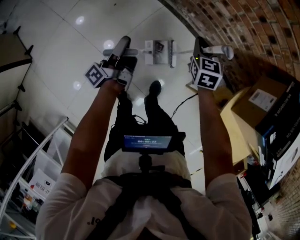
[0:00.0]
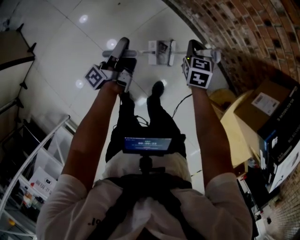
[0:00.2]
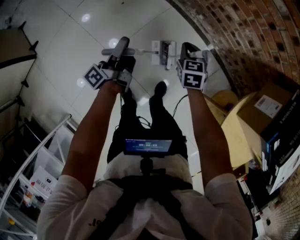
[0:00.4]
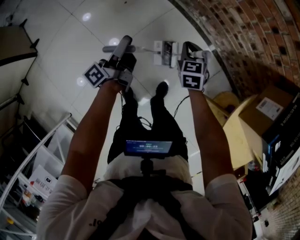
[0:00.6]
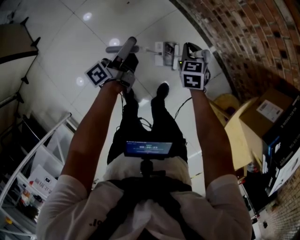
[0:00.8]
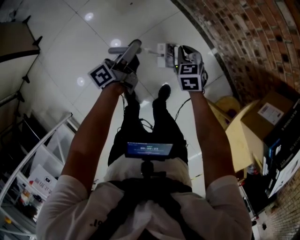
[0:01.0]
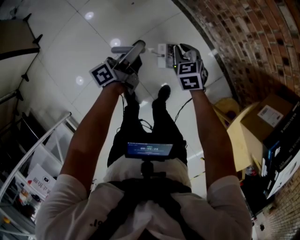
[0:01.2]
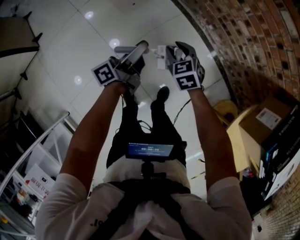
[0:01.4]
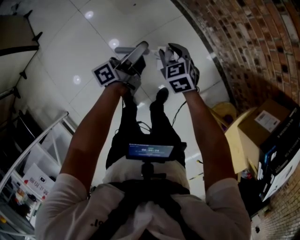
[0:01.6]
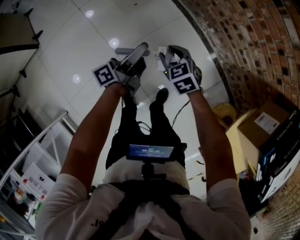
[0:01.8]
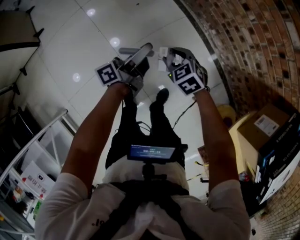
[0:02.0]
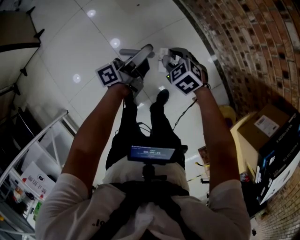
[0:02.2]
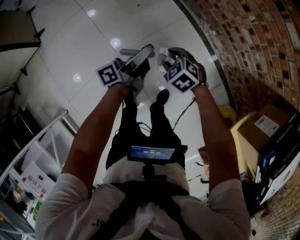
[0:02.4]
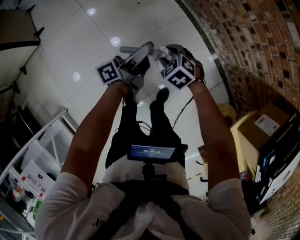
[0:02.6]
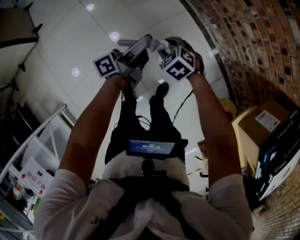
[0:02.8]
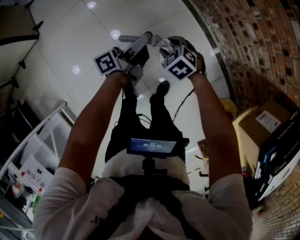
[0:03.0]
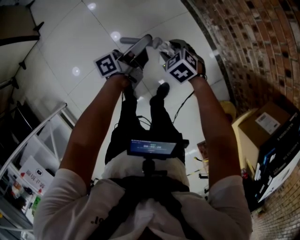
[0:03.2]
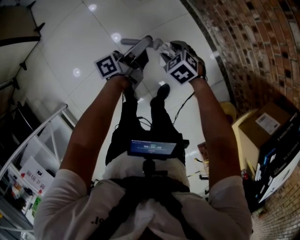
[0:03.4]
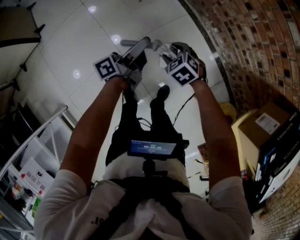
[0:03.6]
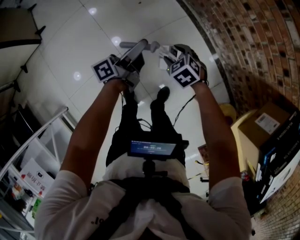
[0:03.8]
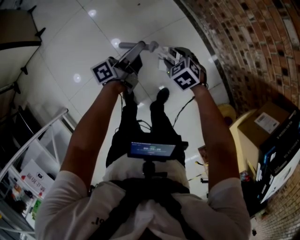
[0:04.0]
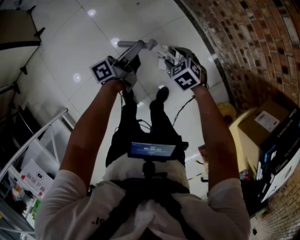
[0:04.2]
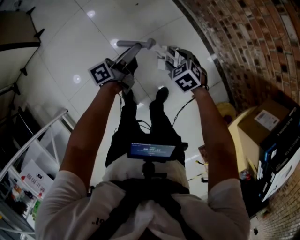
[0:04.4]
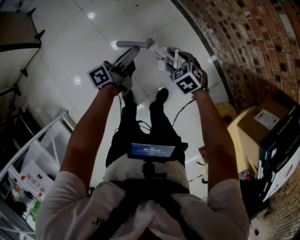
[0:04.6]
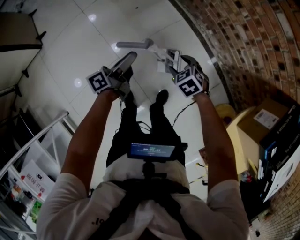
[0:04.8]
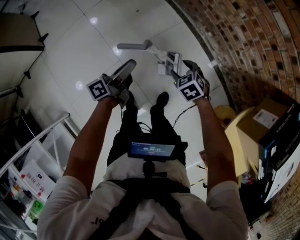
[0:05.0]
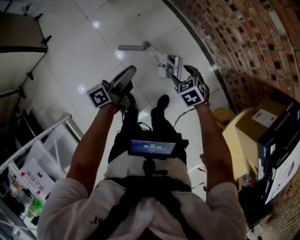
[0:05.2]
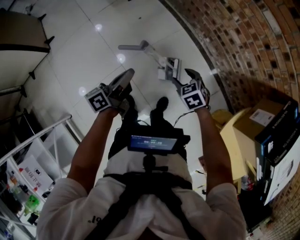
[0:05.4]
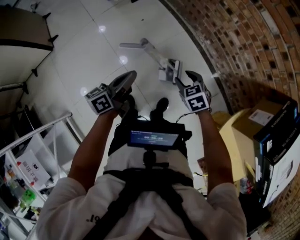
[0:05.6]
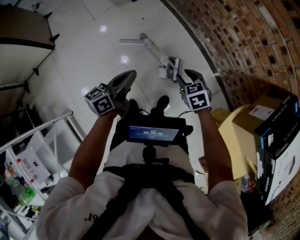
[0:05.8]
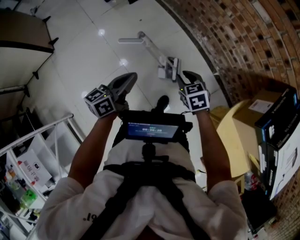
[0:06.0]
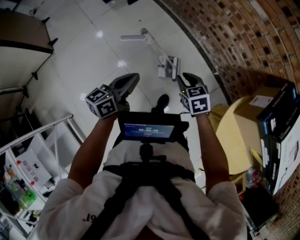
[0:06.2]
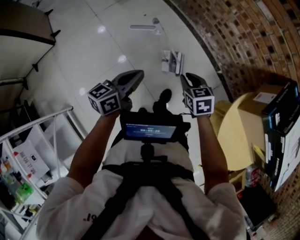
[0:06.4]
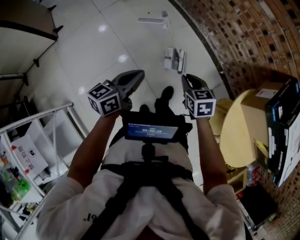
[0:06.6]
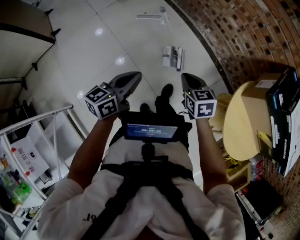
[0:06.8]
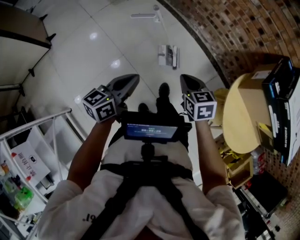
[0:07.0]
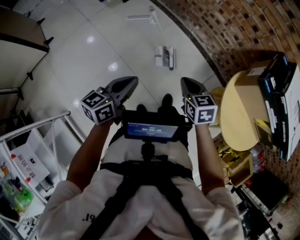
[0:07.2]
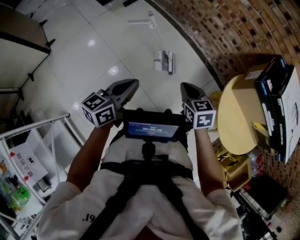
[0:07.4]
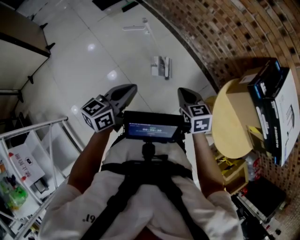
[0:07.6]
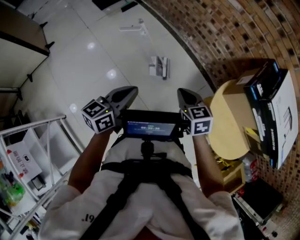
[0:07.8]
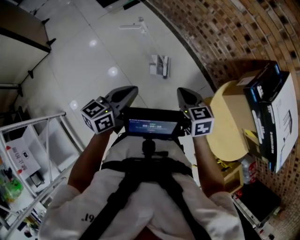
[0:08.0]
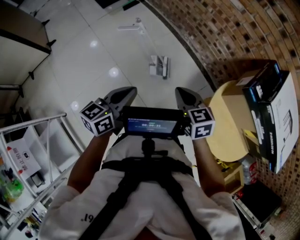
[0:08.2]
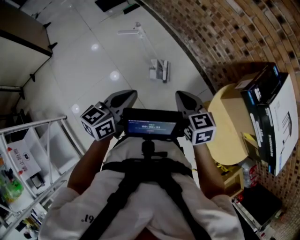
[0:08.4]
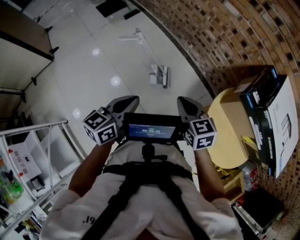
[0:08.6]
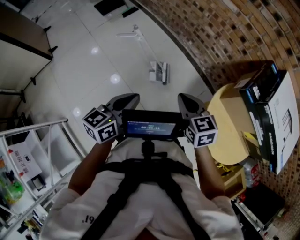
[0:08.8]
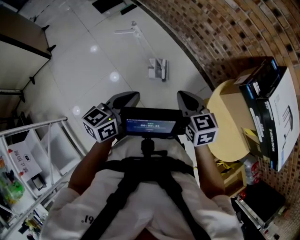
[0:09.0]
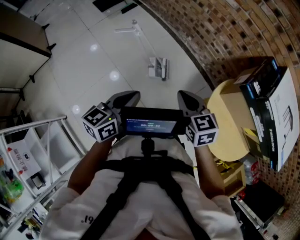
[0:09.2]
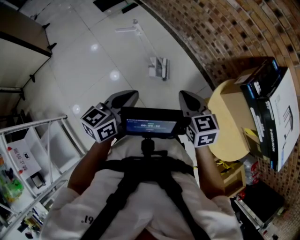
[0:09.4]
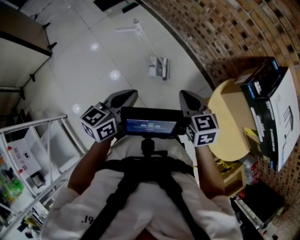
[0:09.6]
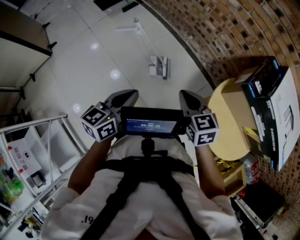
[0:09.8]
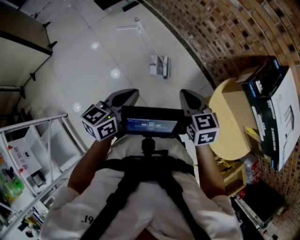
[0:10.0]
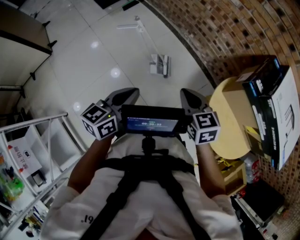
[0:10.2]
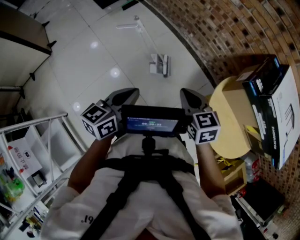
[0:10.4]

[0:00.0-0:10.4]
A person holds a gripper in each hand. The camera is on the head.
0:00.0 to 0:01.4: The left gripper opens up, while the right gripper moves to the left, approximately 20 cm, changes its angle by roughly 30 degrees, and opens its fingers.
0:01.4 to 0:03.0: The right gripper travels to the left by approximately 5 cm, and changes its angle by about 30 degrees.
0:03.0 to 0:04.4: The right gripper moves some 5 cm.
0:04.4 to 0:06.0: The right gripper goes roughly 15 cm backward, upward and to the right, swivels approximately 20 degrees, and closes, while the left gripper is displaced backward and upward by some 20 cm, changes its angle by some 40 degrees, and closes.
0:06.0 to 0:07.4: The left gripper shifts some 20 cm backward. Meanwhile the right gripper is displaced backward and upward by approximately 20 cm.
0:07.4 to 0:09.0: The left gripper travels to the right by some 10 cm. Meanwhile the right gripper is displaced upward and to the right by approximately 10 cm.
0:09.0 to 0:10.4: The grippers move only a little.

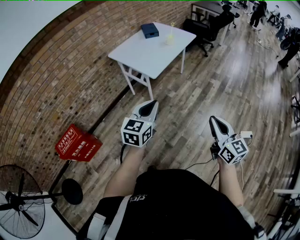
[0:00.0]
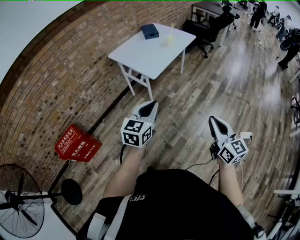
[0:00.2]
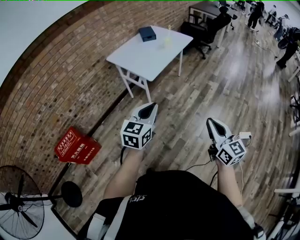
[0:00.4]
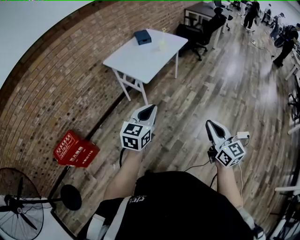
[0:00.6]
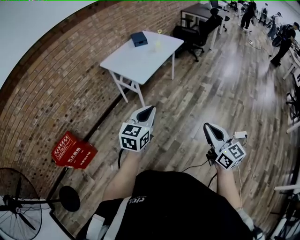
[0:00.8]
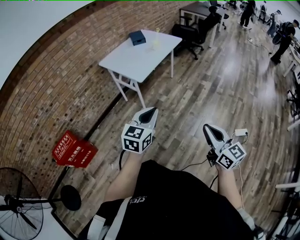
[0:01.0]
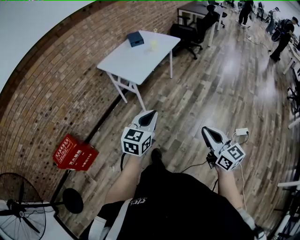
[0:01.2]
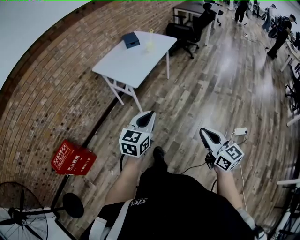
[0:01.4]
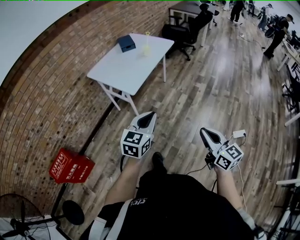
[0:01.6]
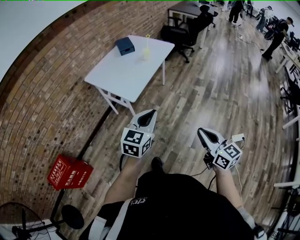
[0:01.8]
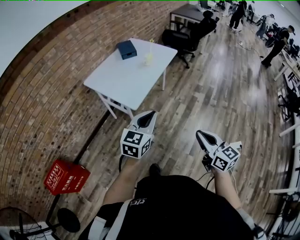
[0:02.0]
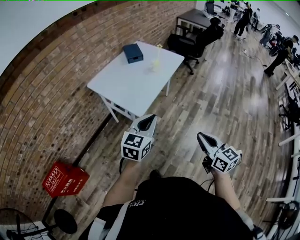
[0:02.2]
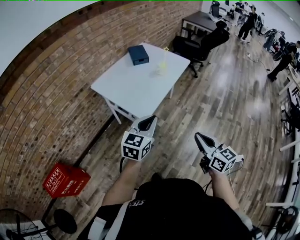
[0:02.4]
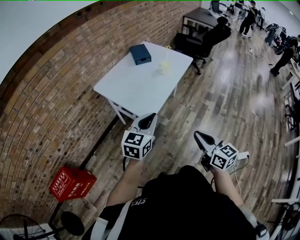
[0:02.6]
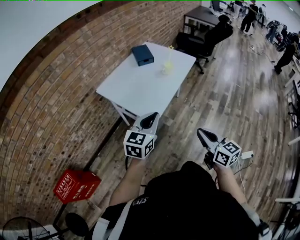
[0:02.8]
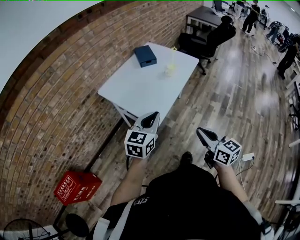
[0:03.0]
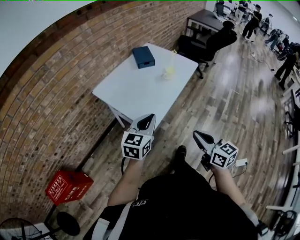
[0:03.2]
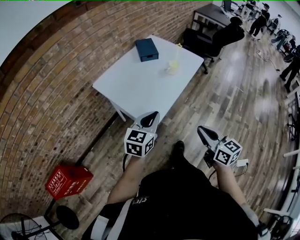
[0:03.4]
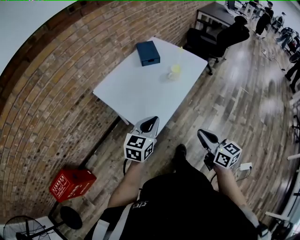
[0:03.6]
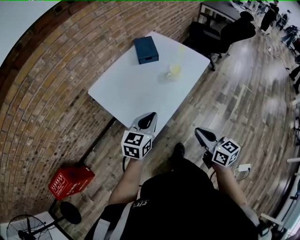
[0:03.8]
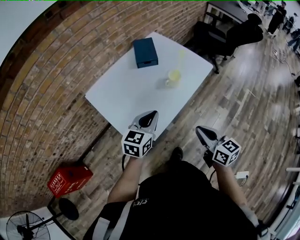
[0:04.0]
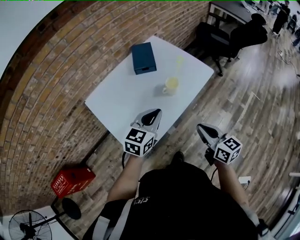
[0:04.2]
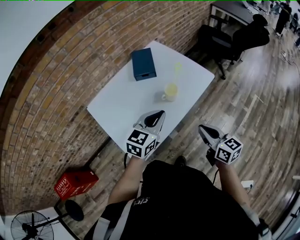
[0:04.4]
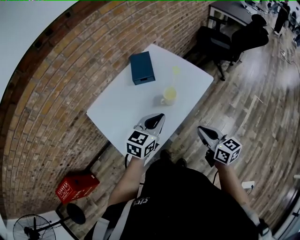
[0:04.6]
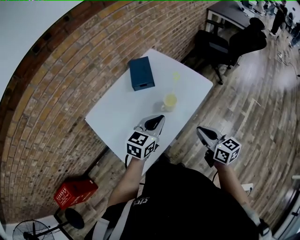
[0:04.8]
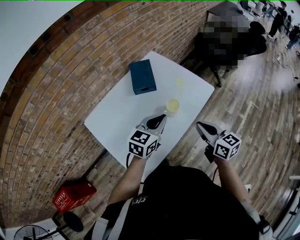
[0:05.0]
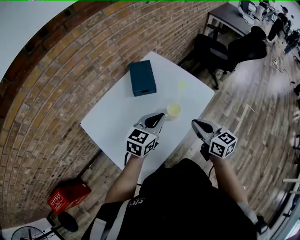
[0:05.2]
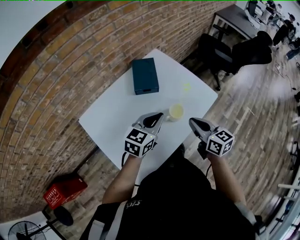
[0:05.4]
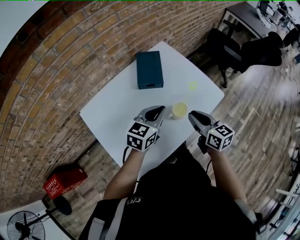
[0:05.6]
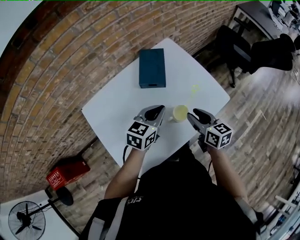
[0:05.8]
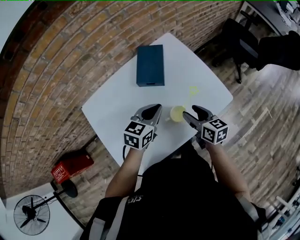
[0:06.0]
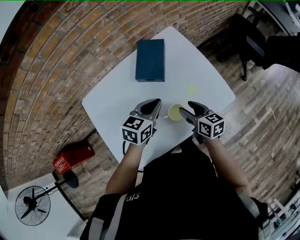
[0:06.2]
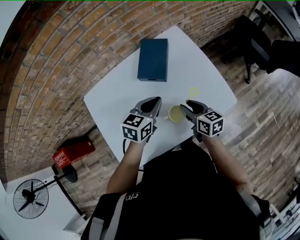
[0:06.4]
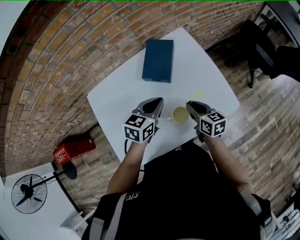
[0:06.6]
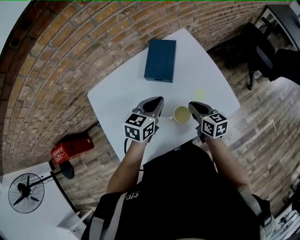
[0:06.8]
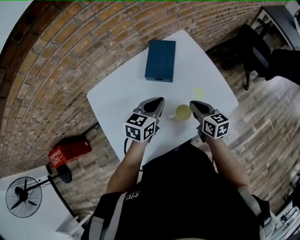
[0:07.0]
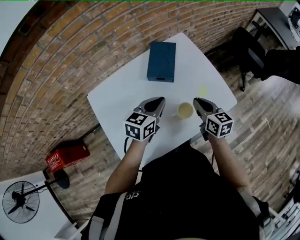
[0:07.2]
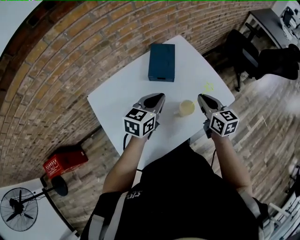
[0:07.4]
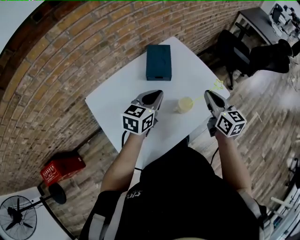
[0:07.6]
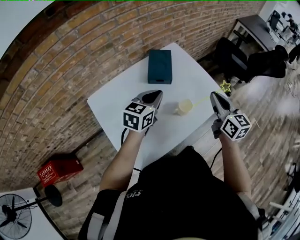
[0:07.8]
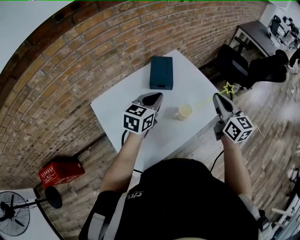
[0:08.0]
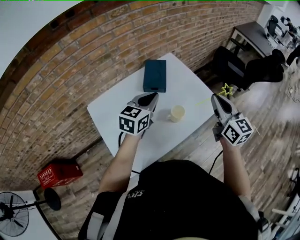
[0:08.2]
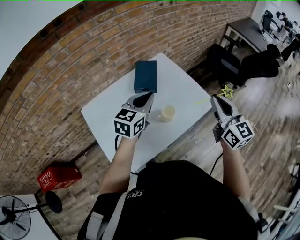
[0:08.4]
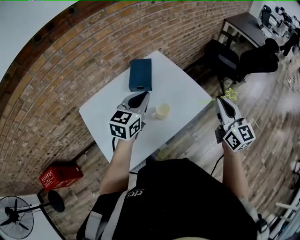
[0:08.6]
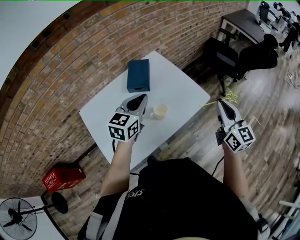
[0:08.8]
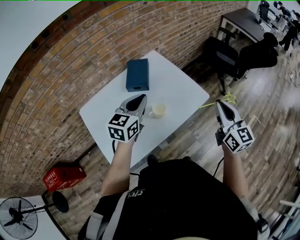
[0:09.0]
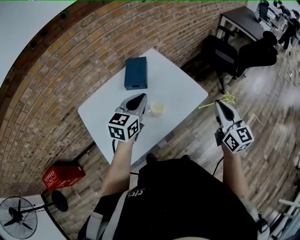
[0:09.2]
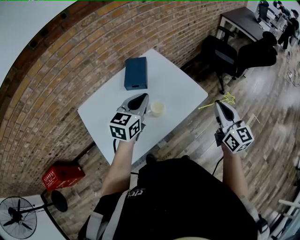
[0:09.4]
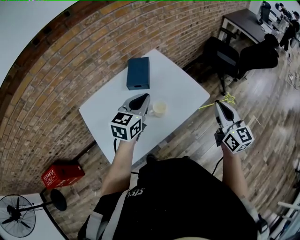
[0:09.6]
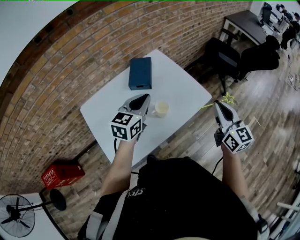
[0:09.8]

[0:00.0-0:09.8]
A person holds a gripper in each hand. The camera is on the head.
0:00.0 to 0:01.4: The left gripper shifts roughly 10 cm to the right. The right gripper goes about 5 cm to the right.
0:01.4 to 0:02.8: Both grippers move forward and to the left, roughly 35 cm.
0:02.8 to 0:04.2: The grippers both shift forward by roughly 35 cm.
0:04.2 to 0:05.6: Both grippers travel together forward, some 20 cm.
0:05.6 to 0:07.0: The right gripper goes approximately 10 cm forward and downward, and opens, then closes once more; the left gripper is displaced forward by approximately 5 cm.
0:07.0 to 0:08.4: The left gripper is displaced upward by roughly 15 cm; the right gripper goes about 30 cm upward and to the right, and changes its angle by some 40 degrees.
0:08.4 to 0:09.8: The right gripper is displaced to the right by some 5 cm.

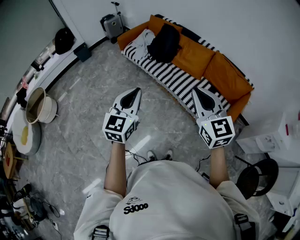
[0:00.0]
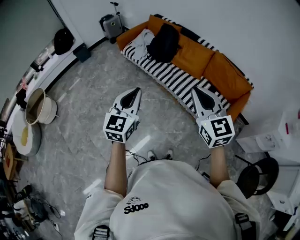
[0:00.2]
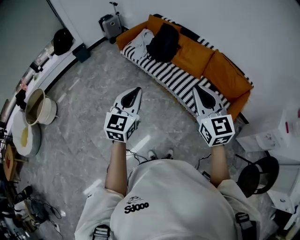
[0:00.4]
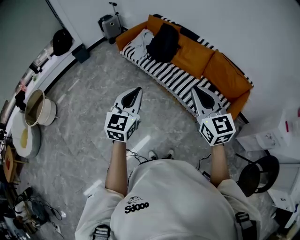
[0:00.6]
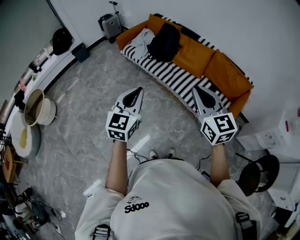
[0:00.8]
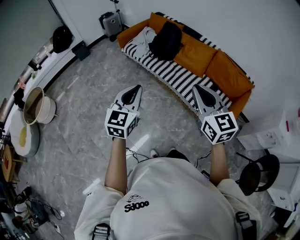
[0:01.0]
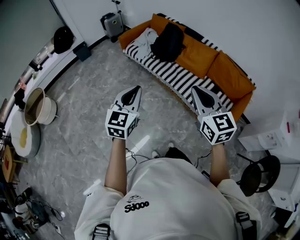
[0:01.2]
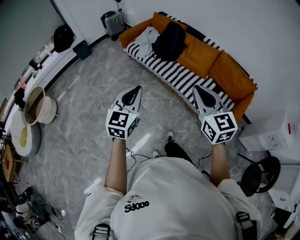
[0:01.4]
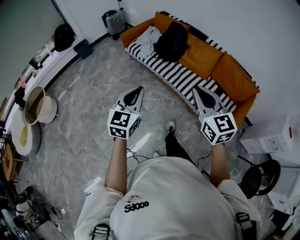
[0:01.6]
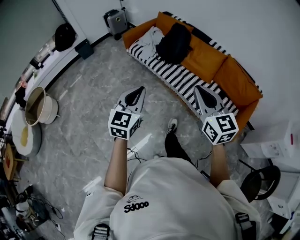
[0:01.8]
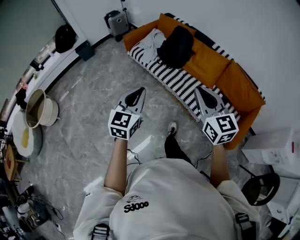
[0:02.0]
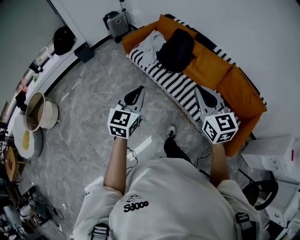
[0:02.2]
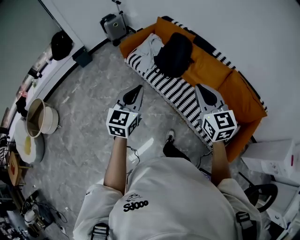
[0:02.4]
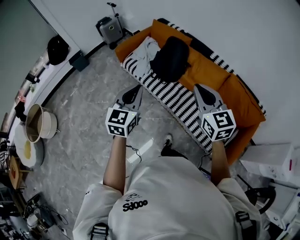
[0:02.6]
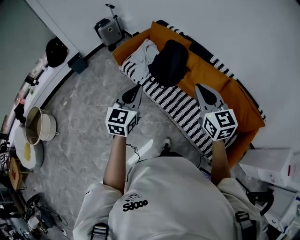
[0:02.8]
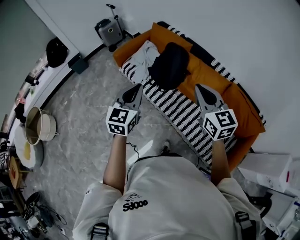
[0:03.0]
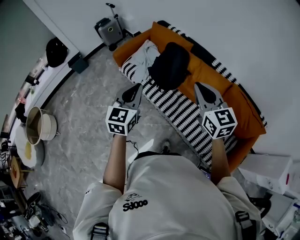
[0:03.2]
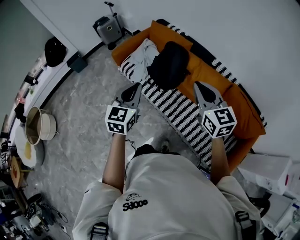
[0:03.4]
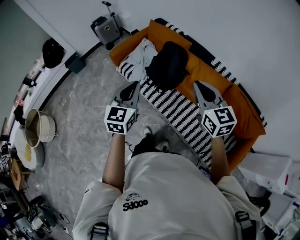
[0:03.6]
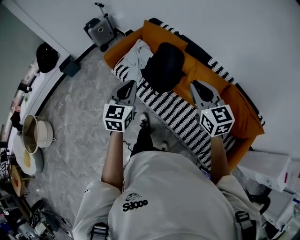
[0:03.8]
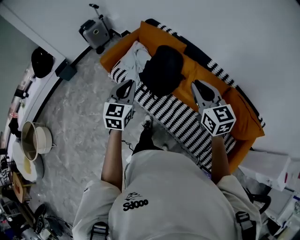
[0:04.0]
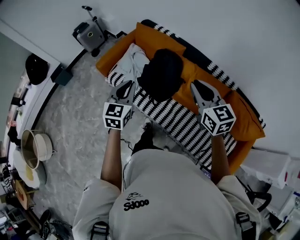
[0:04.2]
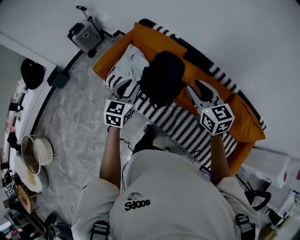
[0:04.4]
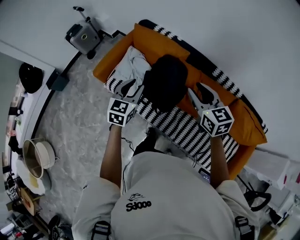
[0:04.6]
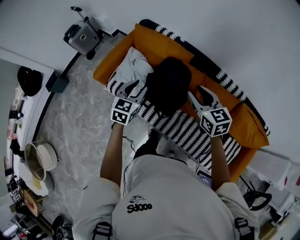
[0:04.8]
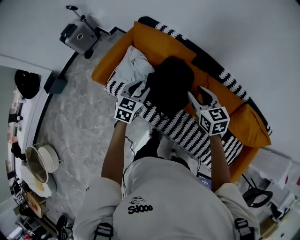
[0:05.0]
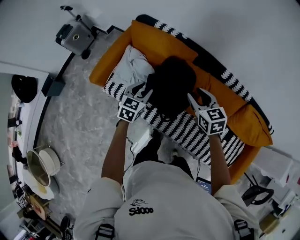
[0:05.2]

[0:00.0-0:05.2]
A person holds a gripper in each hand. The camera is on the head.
0:00.0 to 0:01.8: The left gripper shifts roughly 15 cm forward, to the left and downward. The right gripper travels forward and to the left by some 15 cm.
0:01.8 to 0:03.4: Both grippers are carried forward, some 50 cm.
0:03.4 to 0:05.2: Both grippers are carried forward, about 40 cm. Both grippers move downward, some 25 cm. The left gripper changes its angle by approximately 30 degrees, and opens up. The right gripper rotates about 30 degrees, and opens its fingers.
